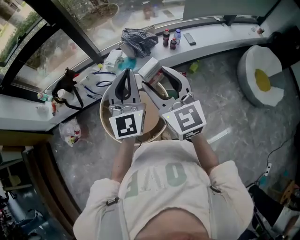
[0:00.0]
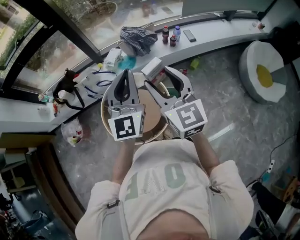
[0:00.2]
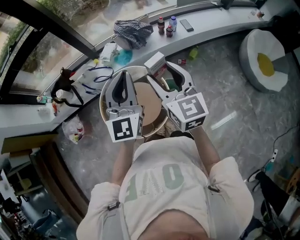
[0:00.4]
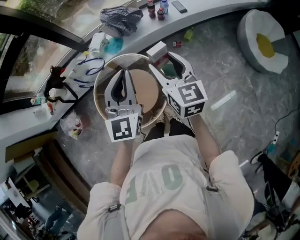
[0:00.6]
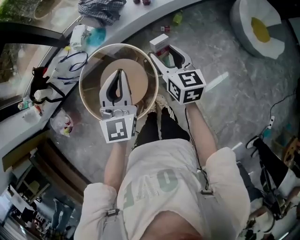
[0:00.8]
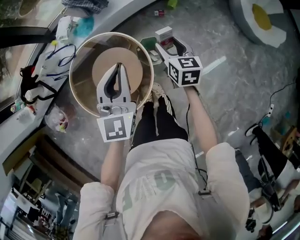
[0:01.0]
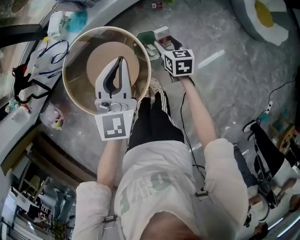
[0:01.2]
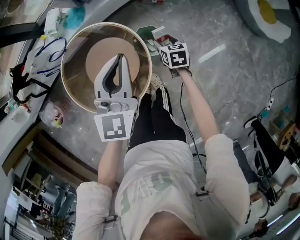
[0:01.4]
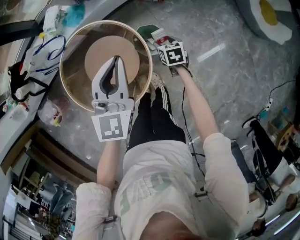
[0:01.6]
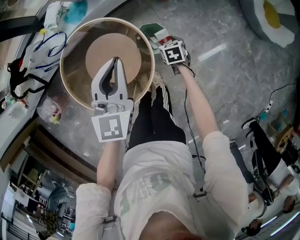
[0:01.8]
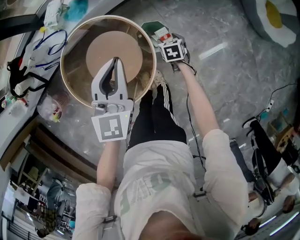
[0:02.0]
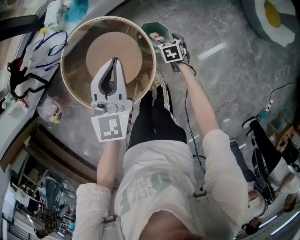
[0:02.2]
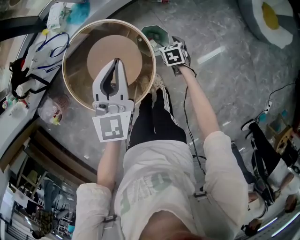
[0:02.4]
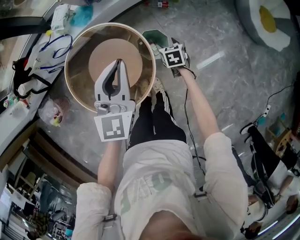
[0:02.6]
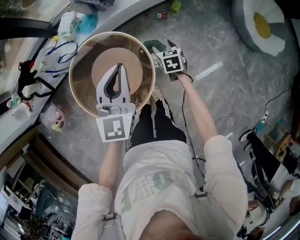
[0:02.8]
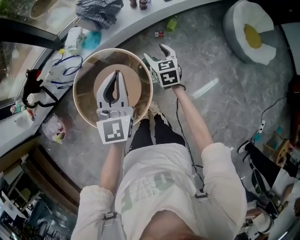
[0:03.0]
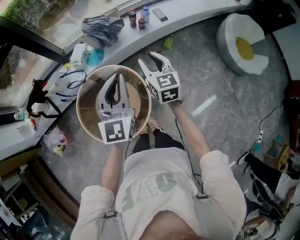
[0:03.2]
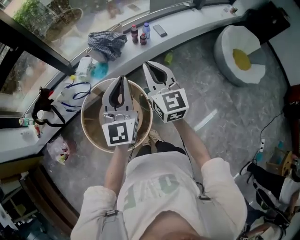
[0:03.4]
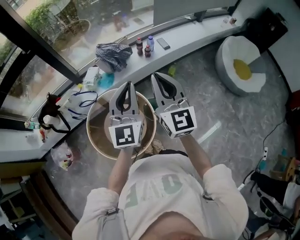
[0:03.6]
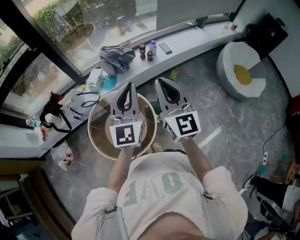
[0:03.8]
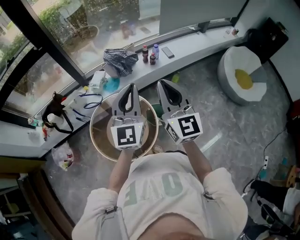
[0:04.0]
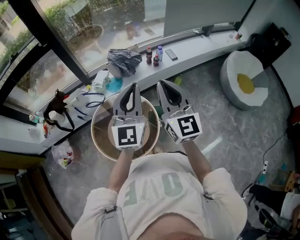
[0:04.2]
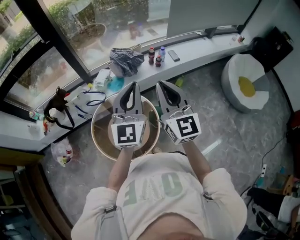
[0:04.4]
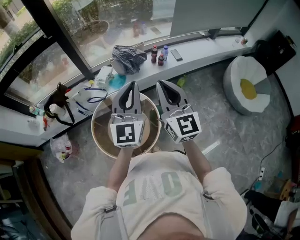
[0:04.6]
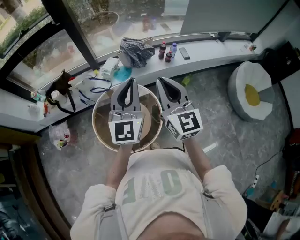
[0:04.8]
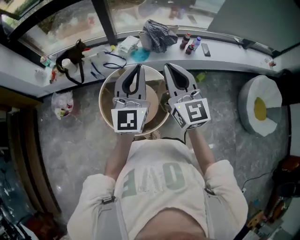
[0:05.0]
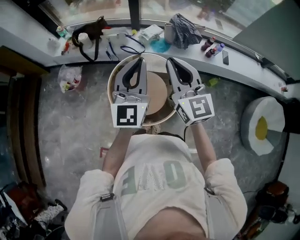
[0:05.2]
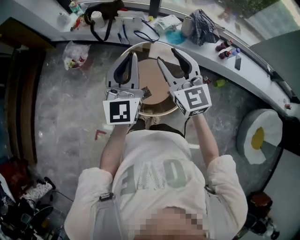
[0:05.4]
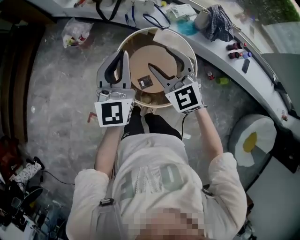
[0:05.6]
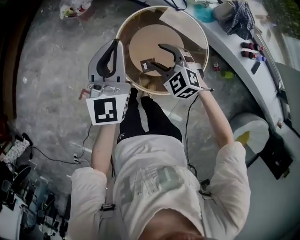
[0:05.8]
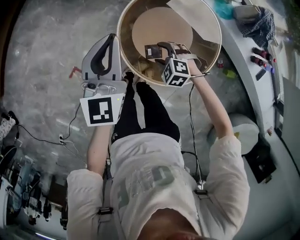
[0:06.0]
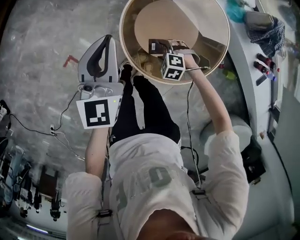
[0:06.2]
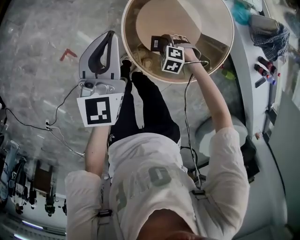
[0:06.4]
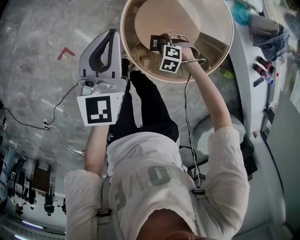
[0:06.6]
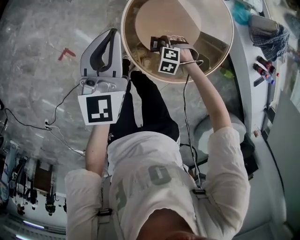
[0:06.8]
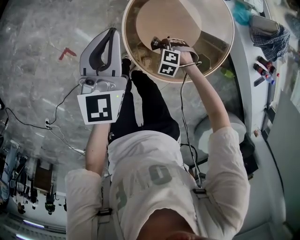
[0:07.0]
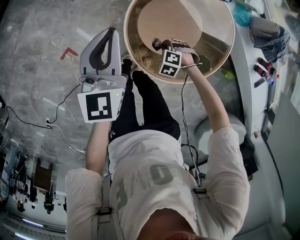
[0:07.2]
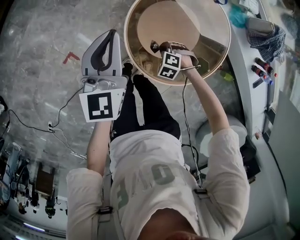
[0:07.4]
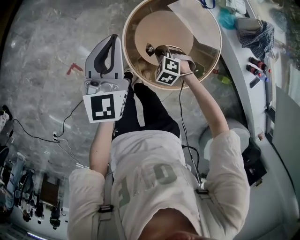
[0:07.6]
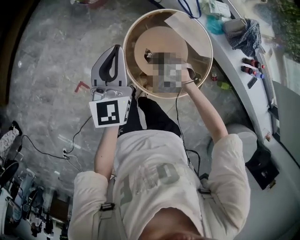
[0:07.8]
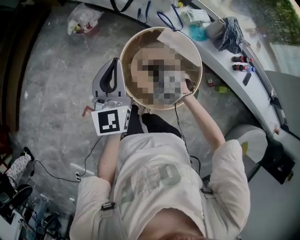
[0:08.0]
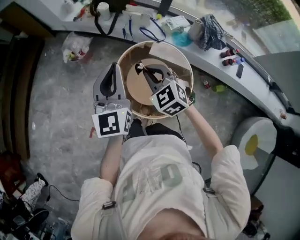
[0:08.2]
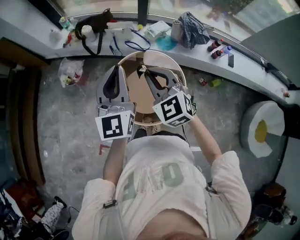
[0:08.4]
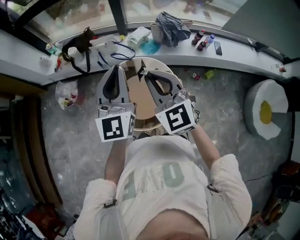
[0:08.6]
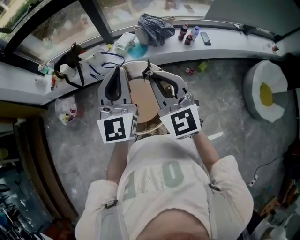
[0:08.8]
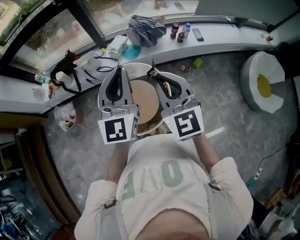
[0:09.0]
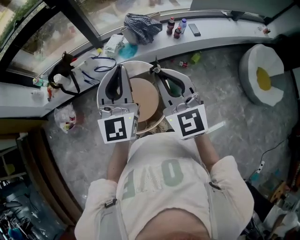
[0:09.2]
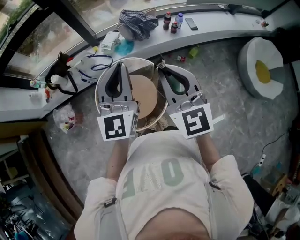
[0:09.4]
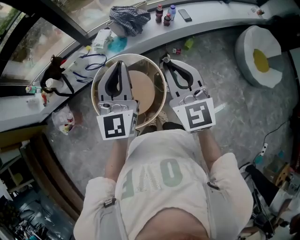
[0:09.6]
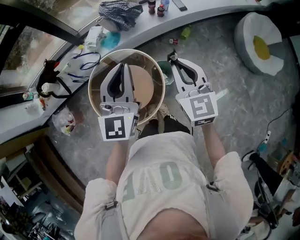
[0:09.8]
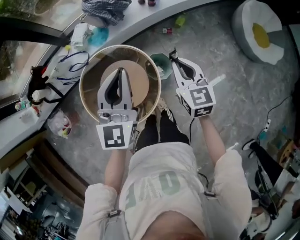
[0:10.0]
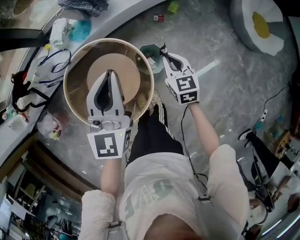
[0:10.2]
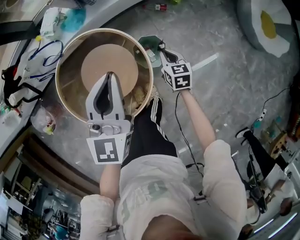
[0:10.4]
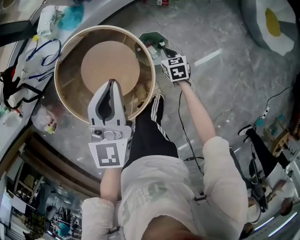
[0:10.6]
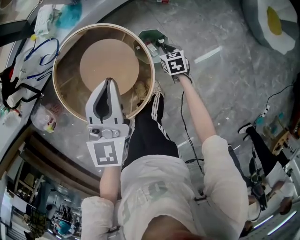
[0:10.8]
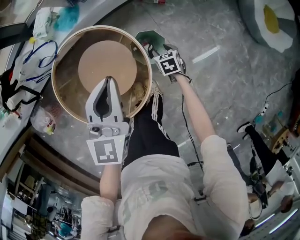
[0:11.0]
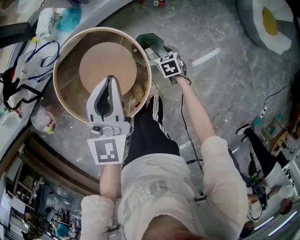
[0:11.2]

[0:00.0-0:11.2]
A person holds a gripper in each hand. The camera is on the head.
0:00.0 to 0:01.6: The left gripper travels downward and to the right by about 30 cm, and changes its angle by roughly 30 degrees; the right gripper moves downward, approximately 60 cm, and points its fingers approximately 60 degrees further downward.
0:01.6 to 0:03.2: The left gripper is displaced upward by some 15 cm. The right gripper is displaced upward by some 35 cm, and angles its fingers upward, by roughly 40 degrees.
0:03.2 to 0:04.8: The right gripper shifts approximately 25 cm upward and backward, swivels about 30 degrees, and closes up. The left gripper travels upward, backward and to the left by some 15 cm.
0:04.8 to 0:06.4: The left gripper ends up about 50 cm from where it was, and changes its angle by approximately 70 degrees. Meanwhile the right gripper travels downward by roughly 70 cm, angles its fingers downward, by some 80 degrees, and opens.
0:06.4 to 0:08.0: The left gripper travels upward by roughly 20 cm. Meanwhile the right gripper is displaced upward by roughly 30 cm, changes its angle by about 50 degrees, and closes.
0:08.0 to 0:09.6: The left gripper moves about 40 cm, and swivels about 50 degrees. Meanwhile the right gripper ends up some 50 cm from where it was, and tilts its fingers approximately 50 degrees upward.
0:09.6 to 0:11.2: The right gripper heads downward, covering some 60 cm, points its fingers some 60 degrees further downward, and opens its fingers; the left gripper travels downward by about 25 cm, and changes its angle by about 30 degrees.

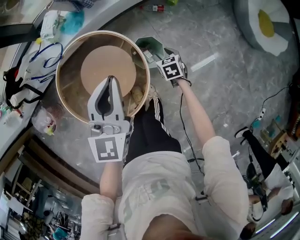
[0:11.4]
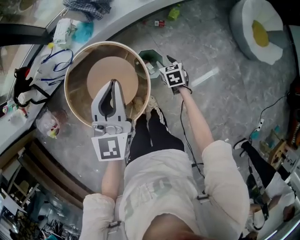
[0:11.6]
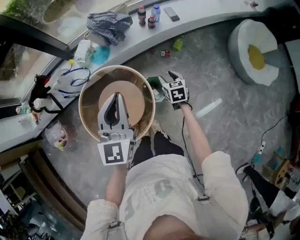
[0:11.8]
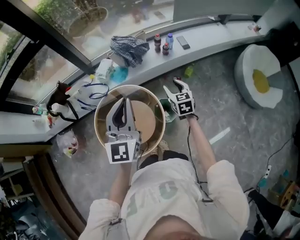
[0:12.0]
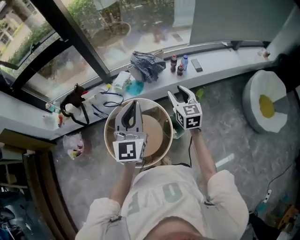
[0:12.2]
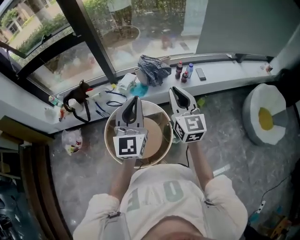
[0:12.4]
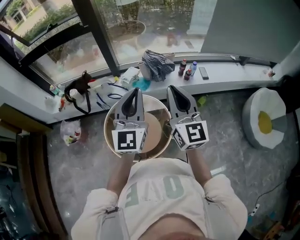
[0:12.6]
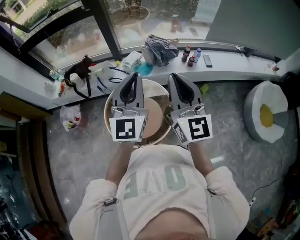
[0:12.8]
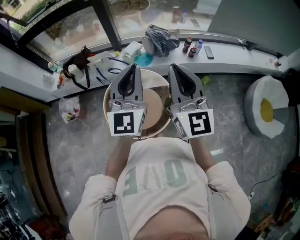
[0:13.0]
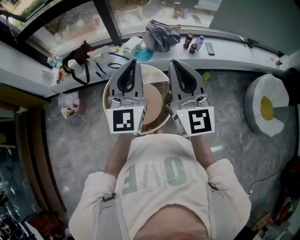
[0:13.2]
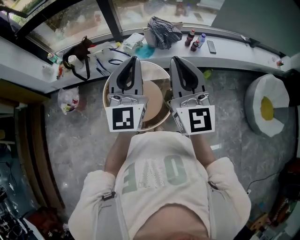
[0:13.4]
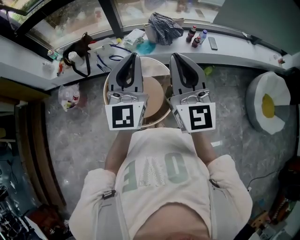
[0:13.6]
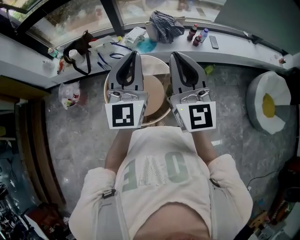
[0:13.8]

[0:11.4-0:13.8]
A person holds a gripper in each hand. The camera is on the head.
0:11.4 to 0:12.6: The left gripper is displaced upward by roughly 30 cm, and turns by some 40 degrees. Meanwhile the right gripper heads upward, covering about 60 cm, angles its fingers upward, by approximately 70 degrees, and closes.
0:12.6 to 0:13.8: The right gripper shifts by about 5 cm.

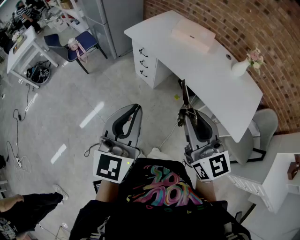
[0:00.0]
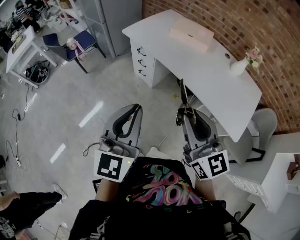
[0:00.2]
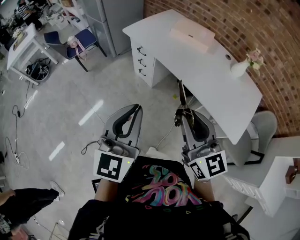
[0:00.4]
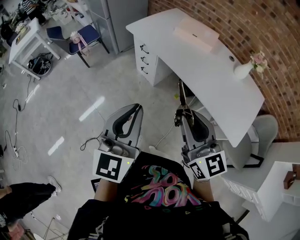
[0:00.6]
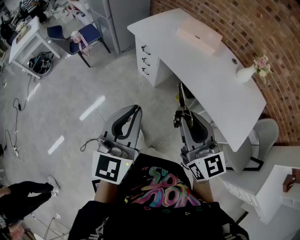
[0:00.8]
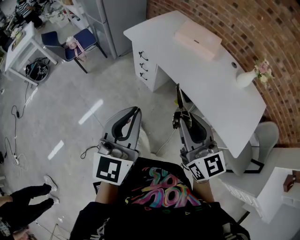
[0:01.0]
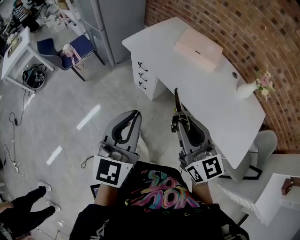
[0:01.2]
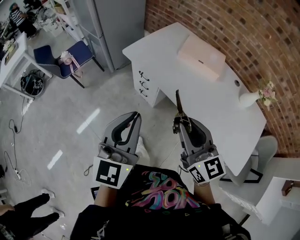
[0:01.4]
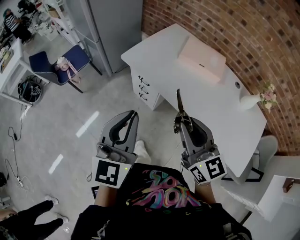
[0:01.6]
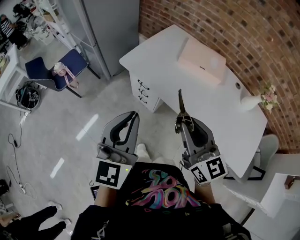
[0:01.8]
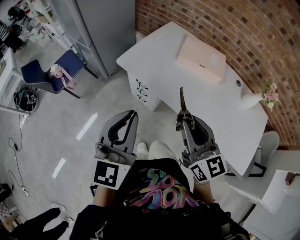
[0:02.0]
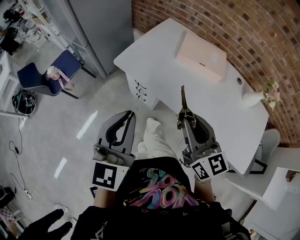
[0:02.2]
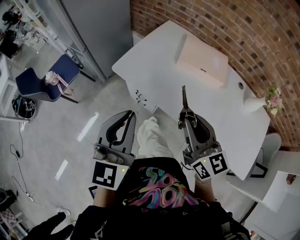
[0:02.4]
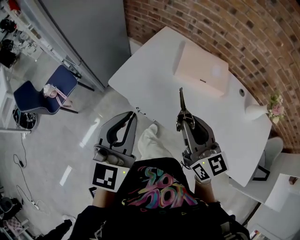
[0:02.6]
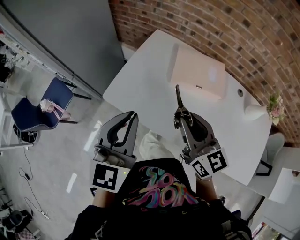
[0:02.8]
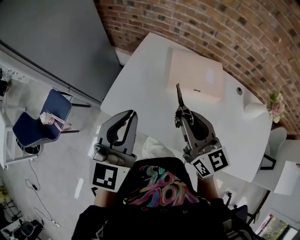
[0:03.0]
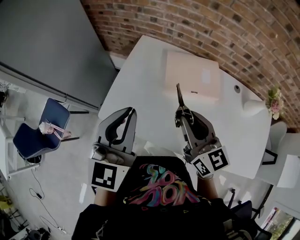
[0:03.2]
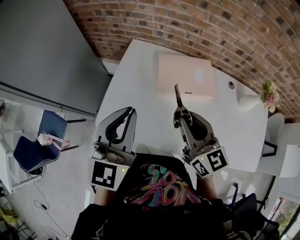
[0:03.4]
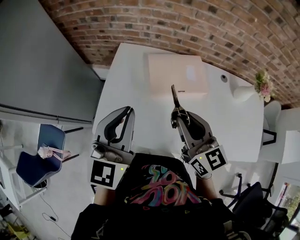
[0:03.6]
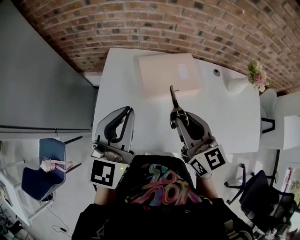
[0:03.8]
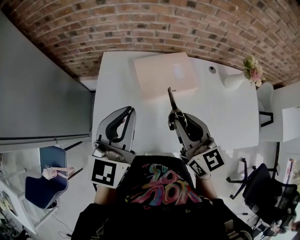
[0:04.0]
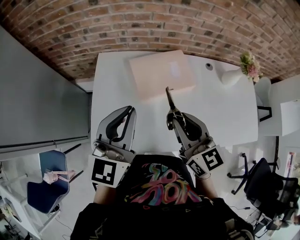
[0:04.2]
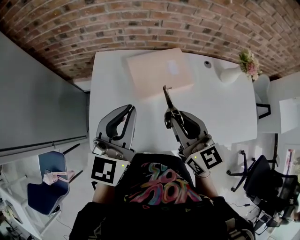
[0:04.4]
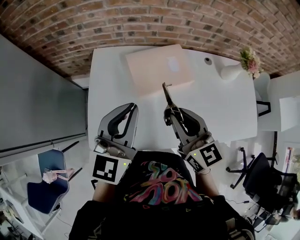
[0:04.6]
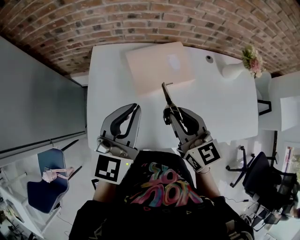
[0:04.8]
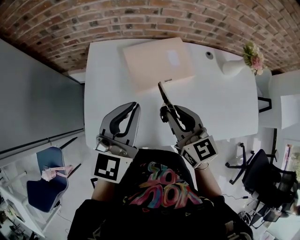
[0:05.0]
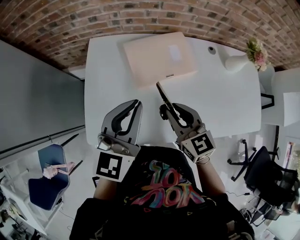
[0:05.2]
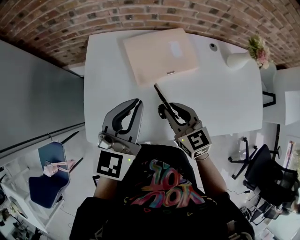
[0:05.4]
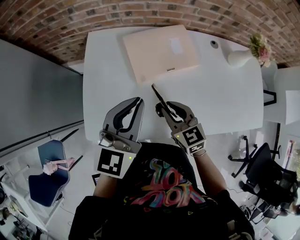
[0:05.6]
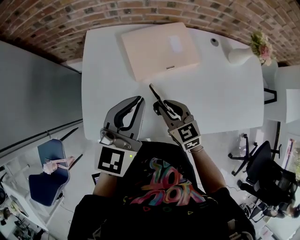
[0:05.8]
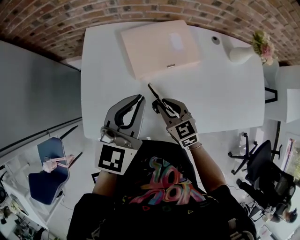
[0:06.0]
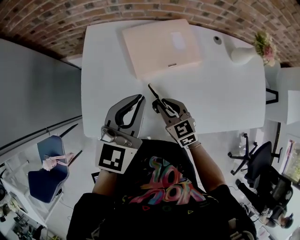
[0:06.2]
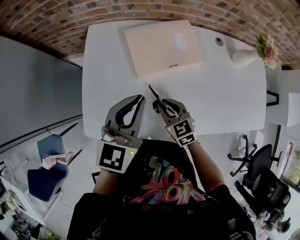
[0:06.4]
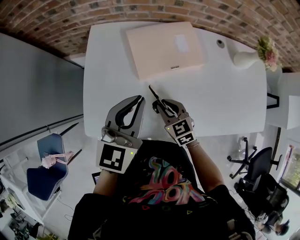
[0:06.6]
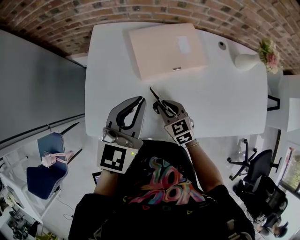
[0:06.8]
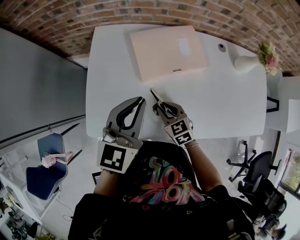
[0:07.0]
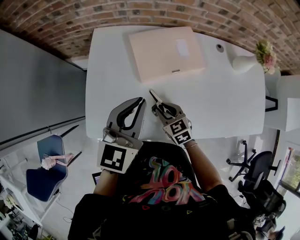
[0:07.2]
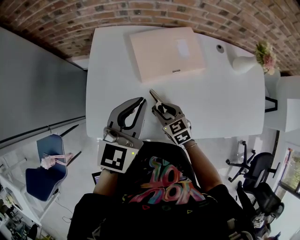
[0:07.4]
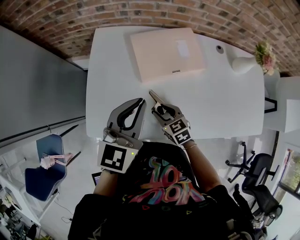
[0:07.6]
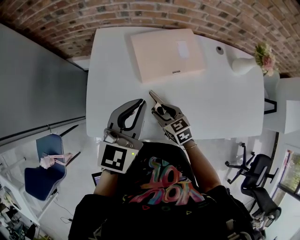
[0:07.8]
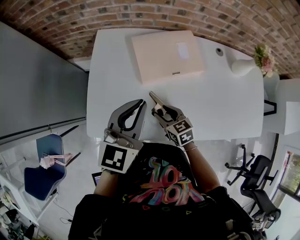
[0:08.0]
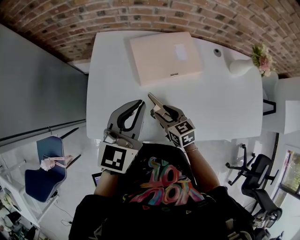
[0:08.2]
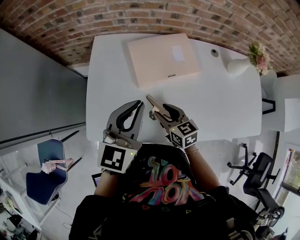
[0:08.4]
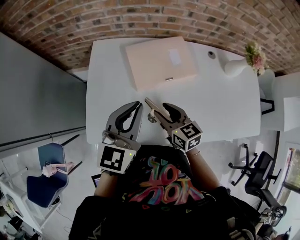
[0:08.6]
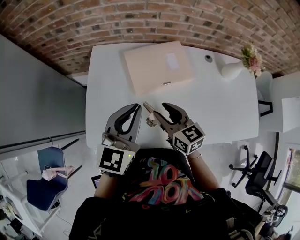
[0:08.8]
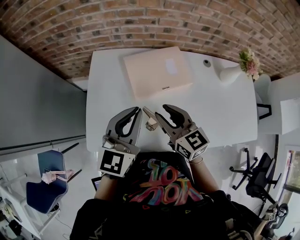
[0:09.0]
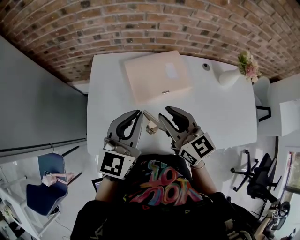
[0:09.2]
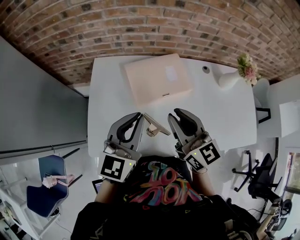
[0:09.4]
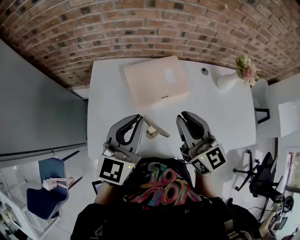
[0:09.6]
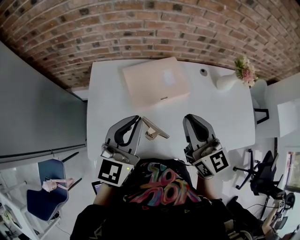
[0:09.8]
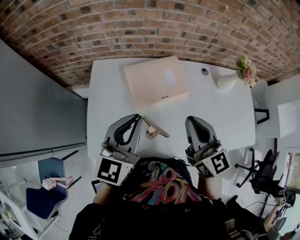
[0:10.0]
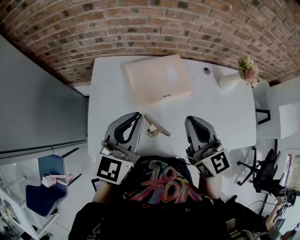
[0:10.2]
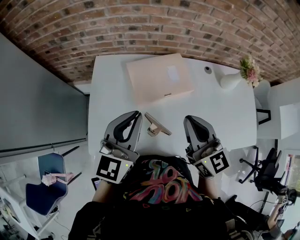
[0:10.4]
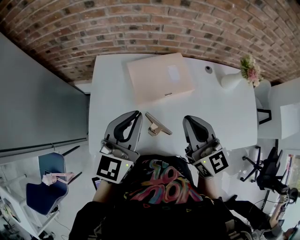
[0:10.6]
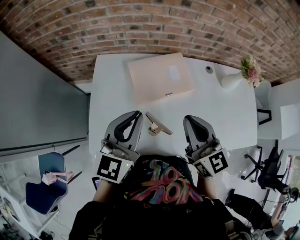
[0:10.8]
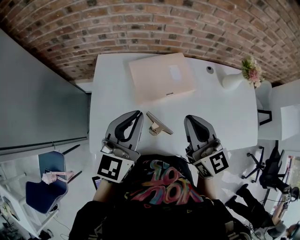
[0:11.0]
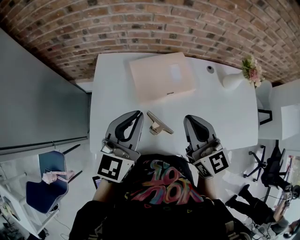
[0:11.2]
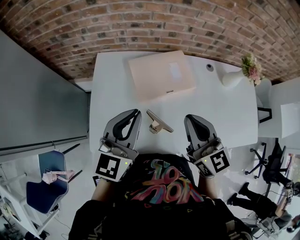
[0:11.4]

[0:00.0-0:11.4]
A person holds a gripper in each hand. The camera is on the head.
0:00.0 to 0:01.4: Both grippers move forward, approximately 30 cm.
0:01.4 to 0:02.8: Both grippers move forward, roughly 40 cm.
0:02.8 to 0:04.2: The right gripper shifts by roughly 10 cm, and turns by roughly 30 degrees. The left gripper moves approximately 20 cm, and swivels roughly 30 degrees.
0:04.2 to 0:05.6: The left gripper heads downward, covering some 10 cm. Meanwhile the right gripper moves downward, roughly 15 cm, and swivels roughly 20 degrees.
0:05.6 to 0:07.2: The right gripper moves downward, about 10 cm.
0:07.2 to 0:08.6: The right gripper is displaced upward by roughly 10 cm, and turns by approximately 20 degrees.
0:08.6 to 0:10.0: The left gripper travels upward by approximately 5 cm; the right gripper heads upward, covering some 20 cm, swivels approximately 30 degrees, and closes up.
0:10.0 to 0:11.4: There are only small adjustments of the grippers.
